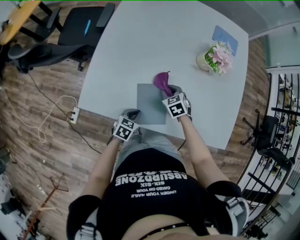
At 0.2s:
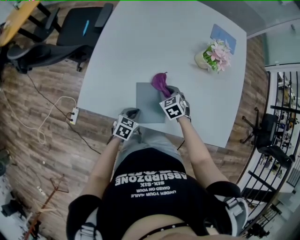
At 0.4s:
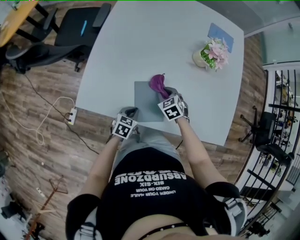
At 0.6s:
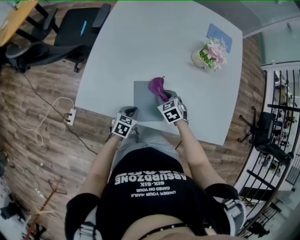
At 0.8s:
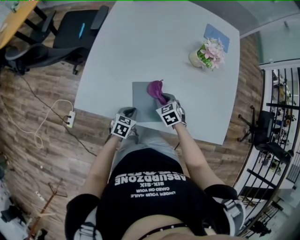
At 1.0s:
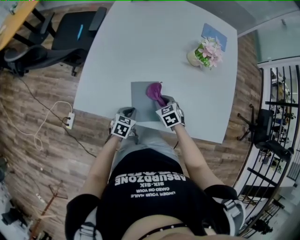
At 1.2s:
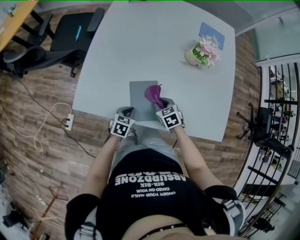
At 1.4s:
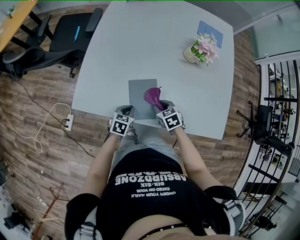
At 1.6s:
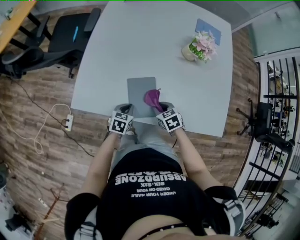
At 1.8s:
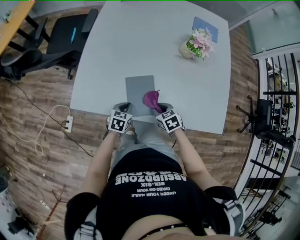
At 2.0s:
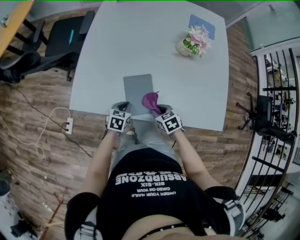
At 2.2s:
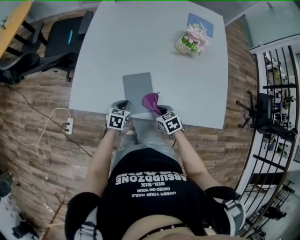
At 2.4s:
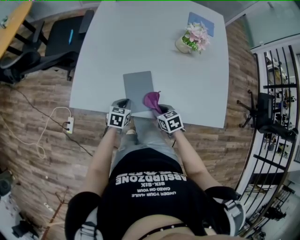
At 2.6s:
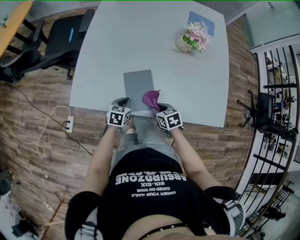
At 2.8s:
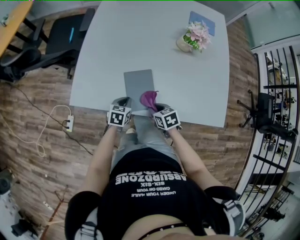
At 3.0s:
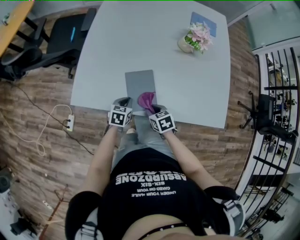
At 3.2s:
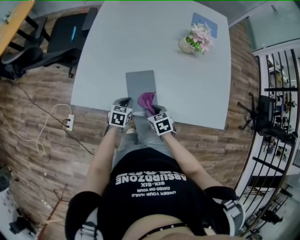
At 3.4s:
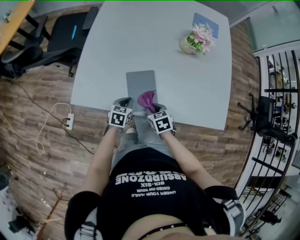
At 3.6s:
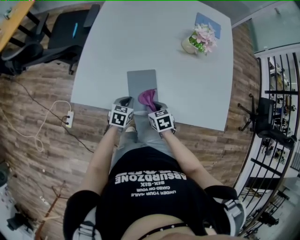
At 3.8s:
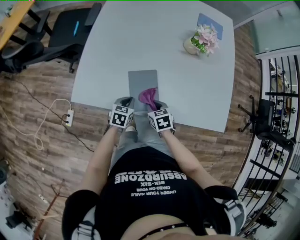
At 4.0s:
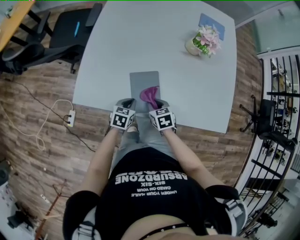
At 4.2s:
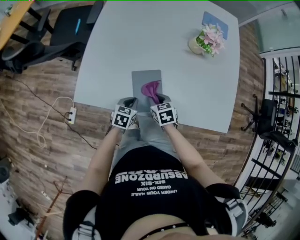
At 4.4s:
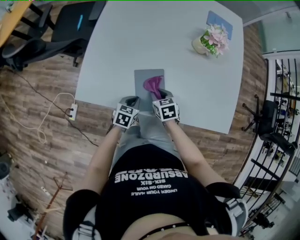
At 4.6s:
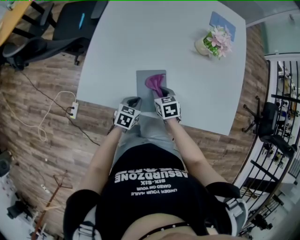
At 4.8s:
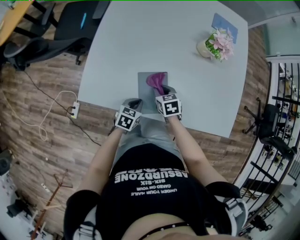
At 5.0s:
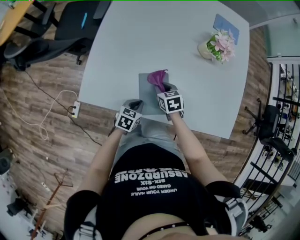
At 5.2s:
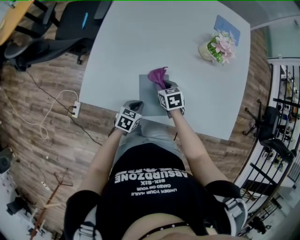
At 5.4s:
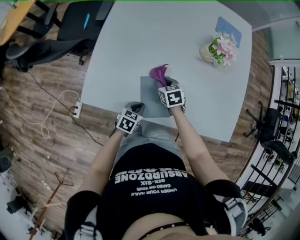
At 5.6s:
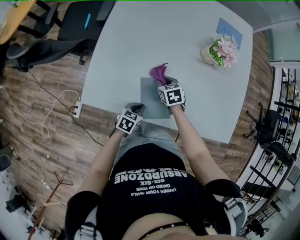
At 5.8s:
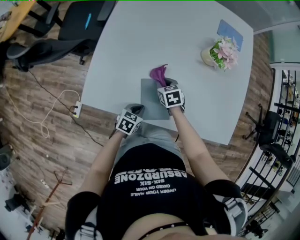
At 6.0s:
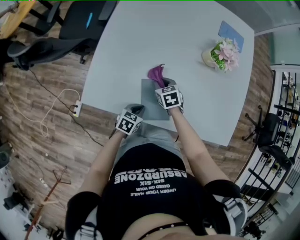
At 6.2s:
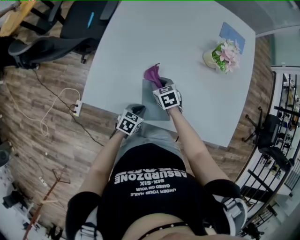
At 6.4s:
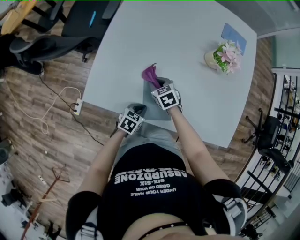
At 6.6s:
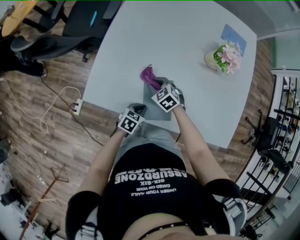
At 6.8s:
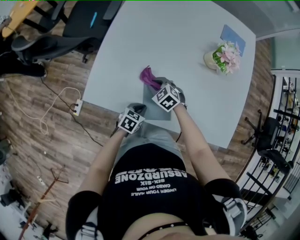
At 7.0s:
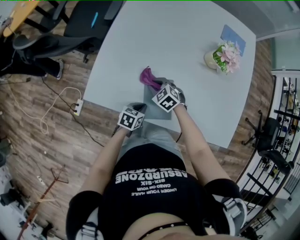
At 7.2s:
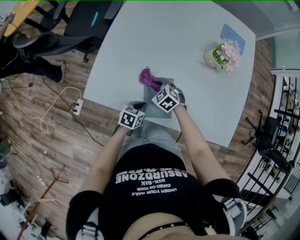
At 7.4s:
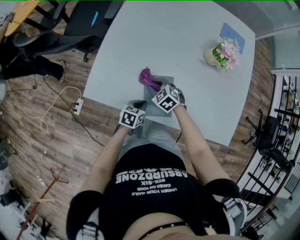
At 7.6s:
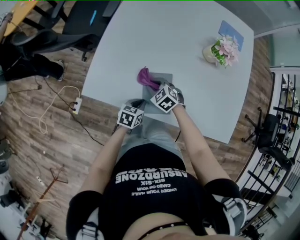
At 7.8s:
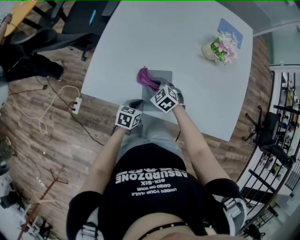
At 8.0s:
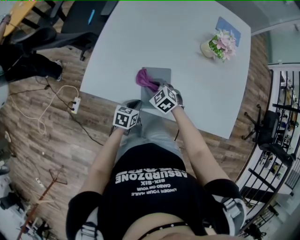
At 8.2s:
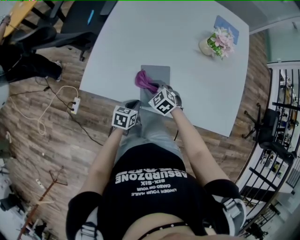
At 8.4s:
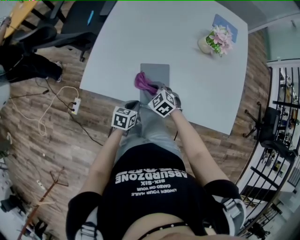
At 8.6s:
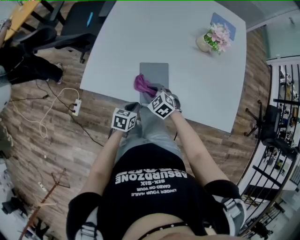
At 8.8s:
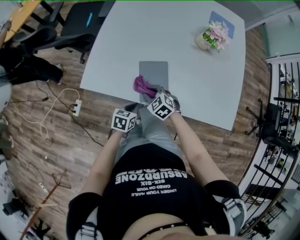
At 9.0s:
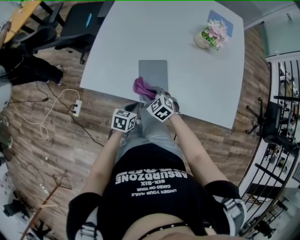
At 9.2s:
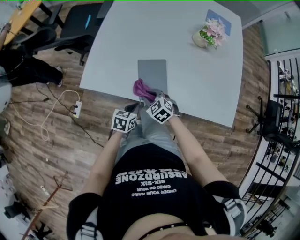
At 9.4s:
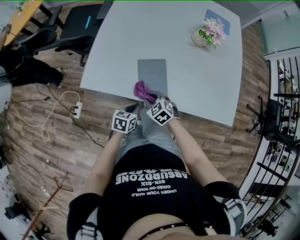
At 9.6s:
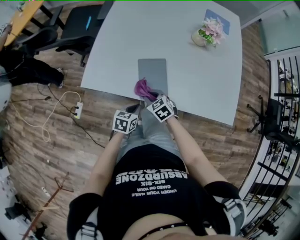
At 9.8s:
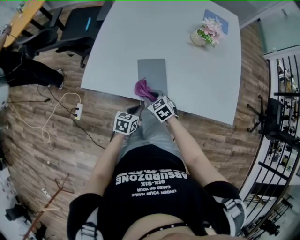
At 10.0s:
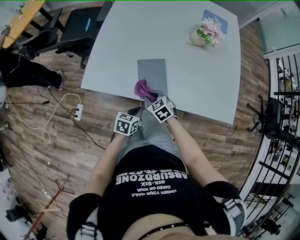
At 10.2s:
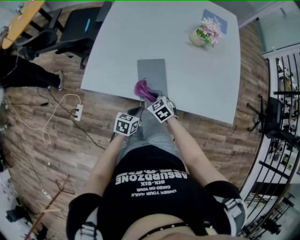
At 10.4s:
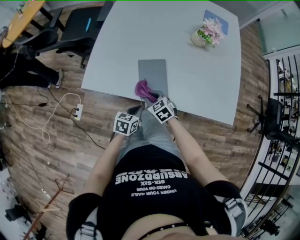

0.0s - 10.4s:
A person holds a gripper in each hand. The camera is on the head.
0.0s - 1.4s: The right gripper shifts some 10 cm backward.
1.4s - 3.0s: The right gripper is displaced backward by some 5 cm.
3.0s - 4.4s: The right gripper moves forward, roughly 10 cm.
4.4s - 6.0s: The right gripper is displaced forward by approximately 10 cm.
6.0s - 7.4s: The right gripper is displaced backward by some 5 cm, and changes its angle by approximately 30 degrees.
7.4s - 9.0s: The grippers both shift backward by roughly 10 cm.
9.0s - 10.4s: The grippers make only small movements.

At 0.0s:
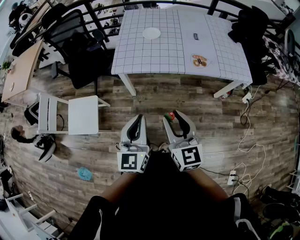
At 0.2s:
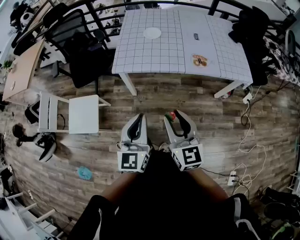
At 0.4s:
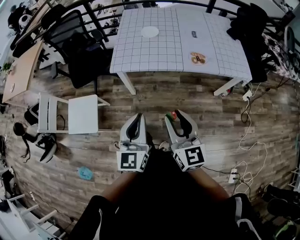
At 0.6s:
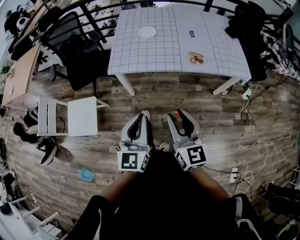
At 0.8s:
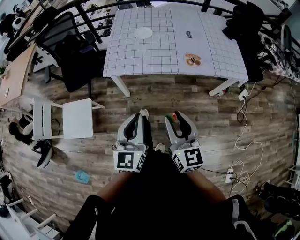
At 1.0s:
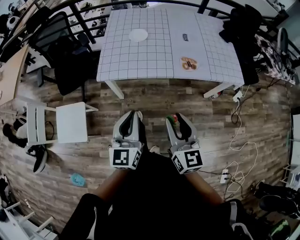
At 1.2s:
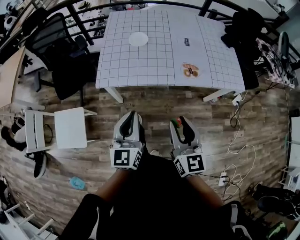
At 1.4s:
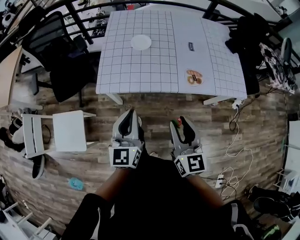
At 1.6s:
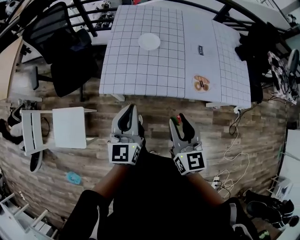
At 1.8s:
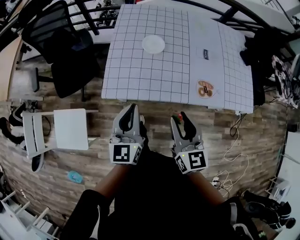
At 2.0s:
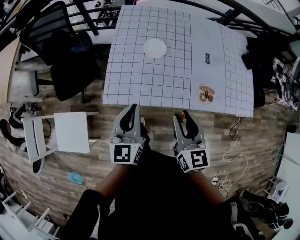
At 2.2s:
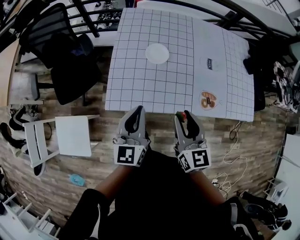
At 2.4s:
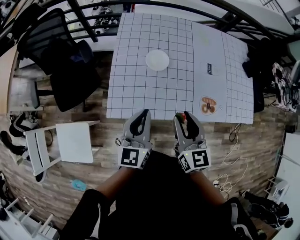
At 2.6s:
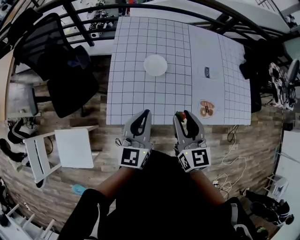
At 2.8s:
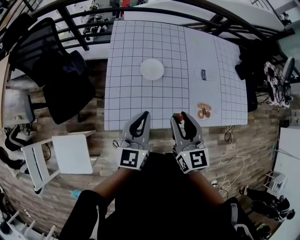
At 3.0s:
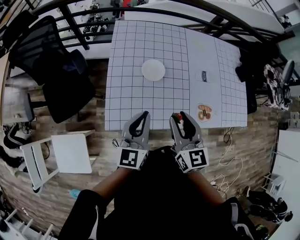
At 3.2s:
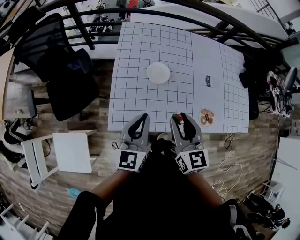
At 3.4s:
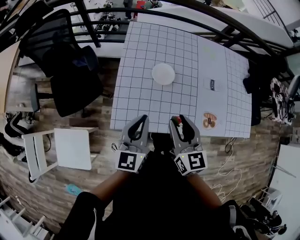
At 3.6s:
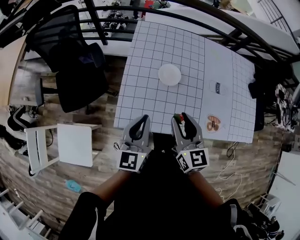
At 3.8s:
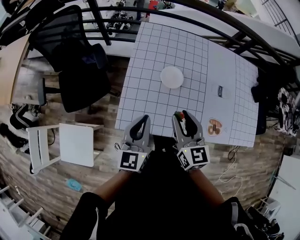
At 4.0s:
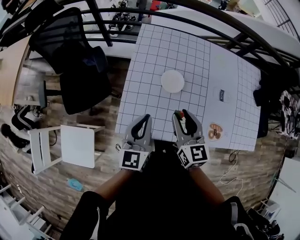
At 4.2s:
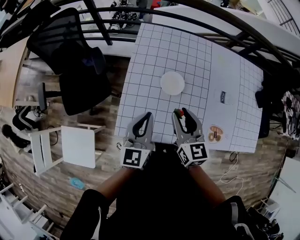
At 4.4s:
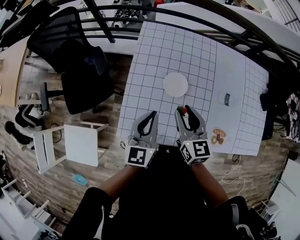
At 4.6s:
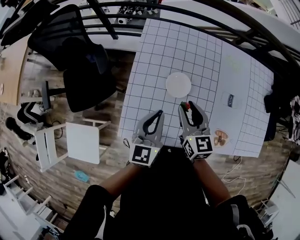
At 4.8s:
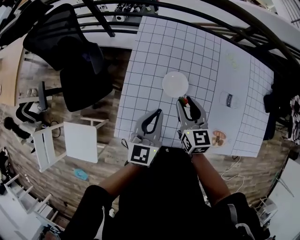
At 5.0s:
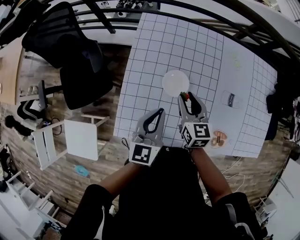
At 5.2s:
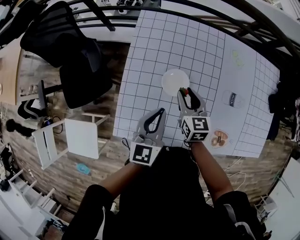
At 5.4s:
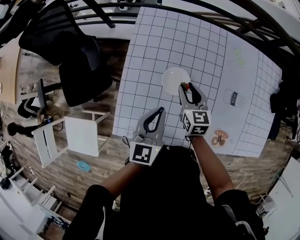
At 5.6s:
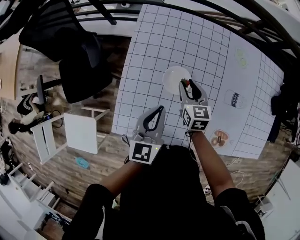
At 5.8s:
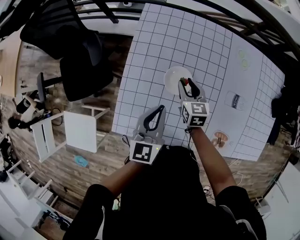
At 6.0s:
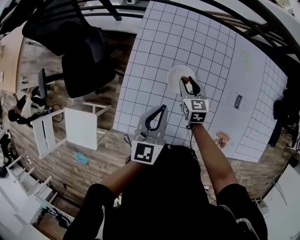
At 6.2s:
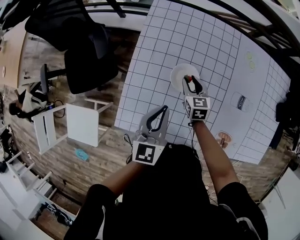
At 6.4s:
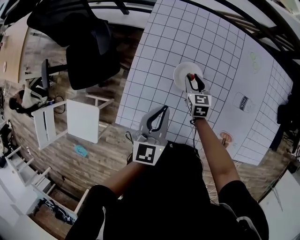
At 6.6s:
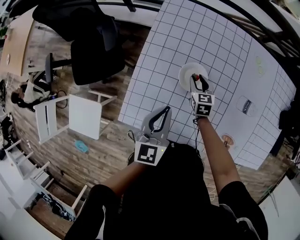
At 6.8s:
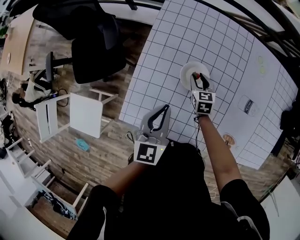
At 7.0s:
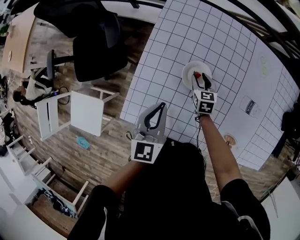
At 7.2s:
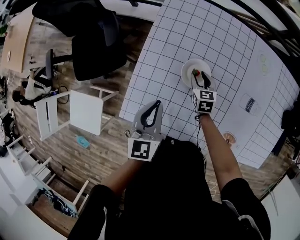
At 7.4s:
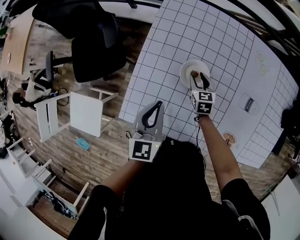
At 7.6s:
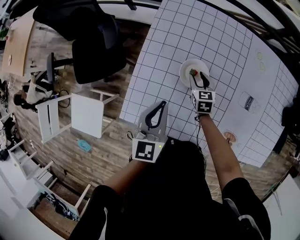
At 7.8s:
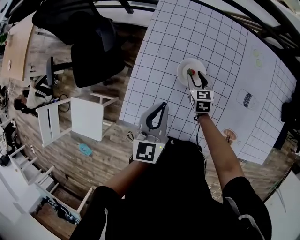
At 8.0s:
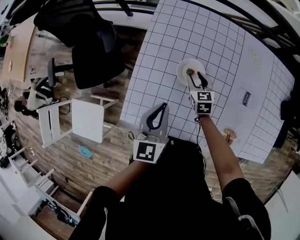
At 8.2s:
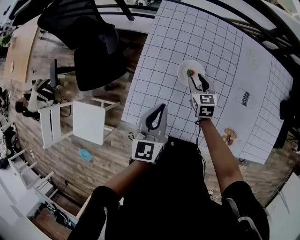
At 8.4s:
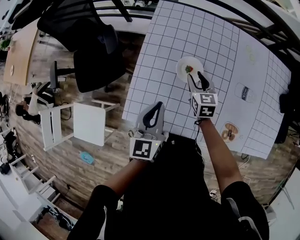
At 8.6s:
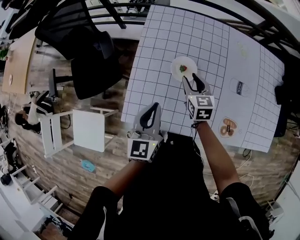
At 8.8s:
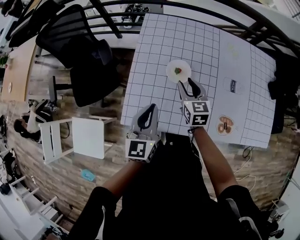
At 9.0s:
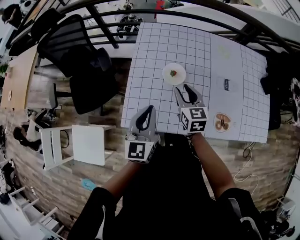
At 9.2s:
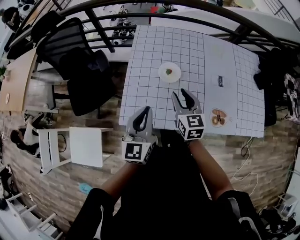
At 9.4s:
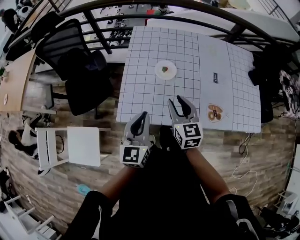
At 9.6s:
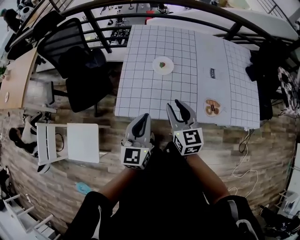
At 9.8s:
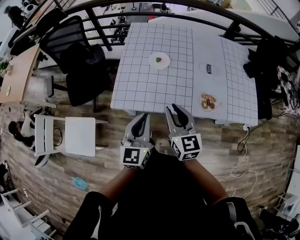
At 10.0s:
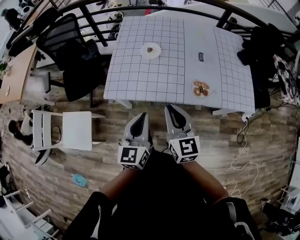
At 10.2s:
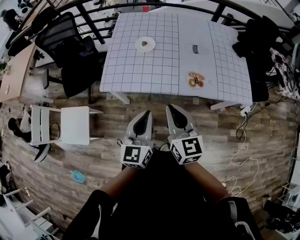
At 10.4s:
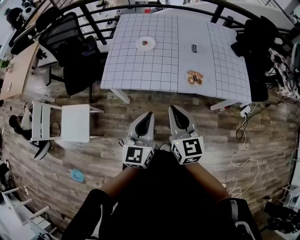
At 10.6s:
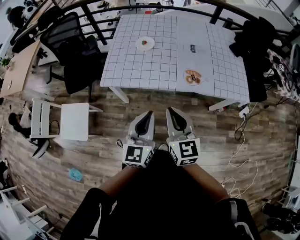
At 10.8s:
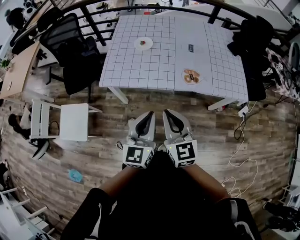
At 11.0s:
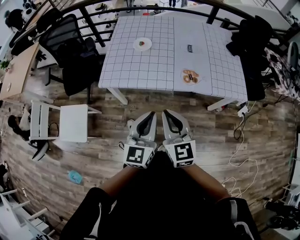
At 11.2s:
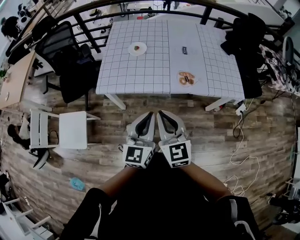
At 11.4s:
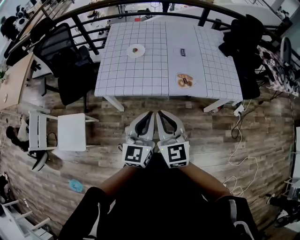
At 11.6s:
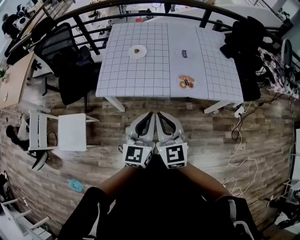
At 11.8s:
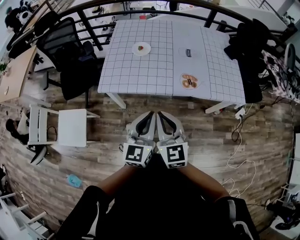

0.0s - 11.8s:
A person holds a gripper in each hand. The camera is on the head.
0.0s - 1.4s: The grippers both shift forward by approximately 20 cm.
1.4s - 3.0s: Both grippers travel together forward, roughly 30 cm.
3.0s - 4.4s: The two grippers go some 15 cm forward.
4.4s - 6.0s: The right gripper is displaced downward and forward by some 25 cm, while the left gripper heads downward and forward, covering about 10 cm.
6.0s - 7.4s: The right gripper goes roughly 5 cm downward; the left gripper is displaced to the left by some 5 cm.
7.4s - 8.8s: The right gripper shifts some 20 cm upward and backward, while the left gripper goes approximately 10 cm backward and upward.
8.8s - 10.4s: The two grippers travel together, backward, roughly 50 cm. The right gripper closes its fingers.
10.4s - 11.8s: The grippers make only small movements.

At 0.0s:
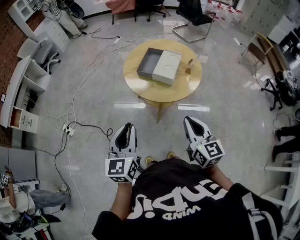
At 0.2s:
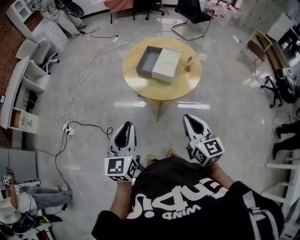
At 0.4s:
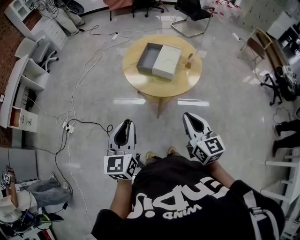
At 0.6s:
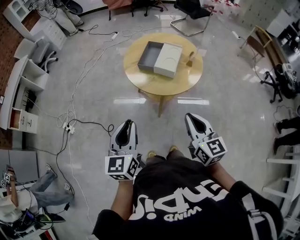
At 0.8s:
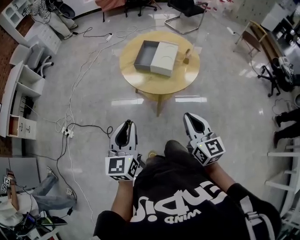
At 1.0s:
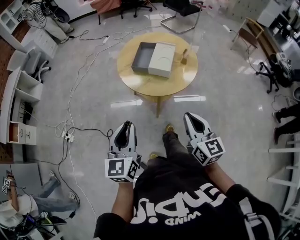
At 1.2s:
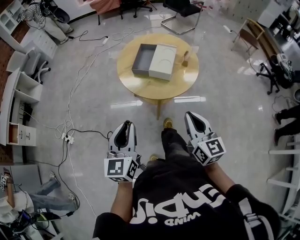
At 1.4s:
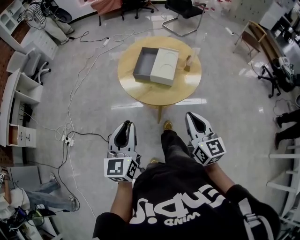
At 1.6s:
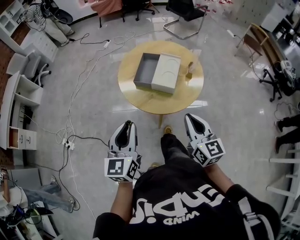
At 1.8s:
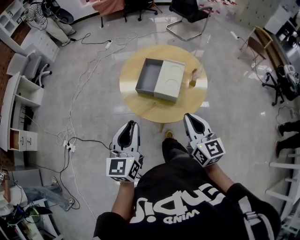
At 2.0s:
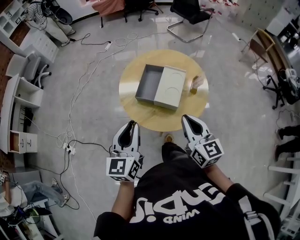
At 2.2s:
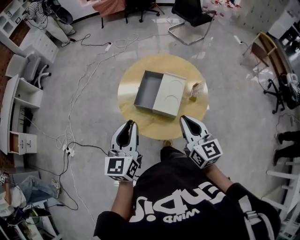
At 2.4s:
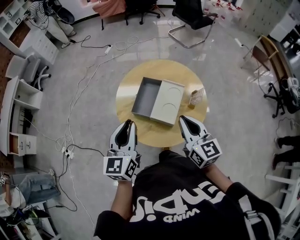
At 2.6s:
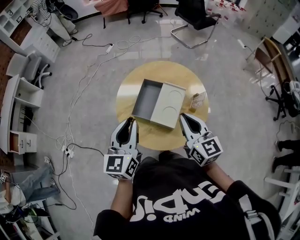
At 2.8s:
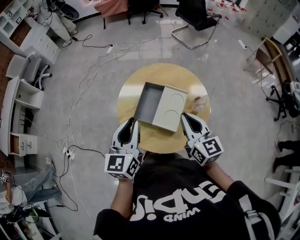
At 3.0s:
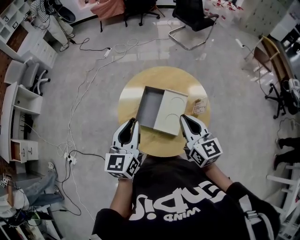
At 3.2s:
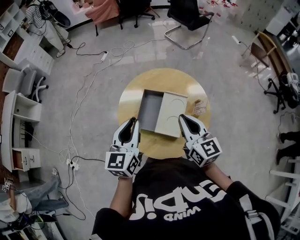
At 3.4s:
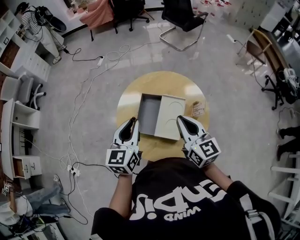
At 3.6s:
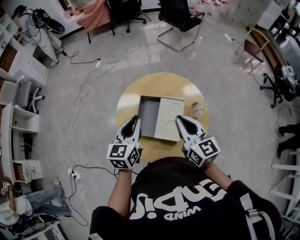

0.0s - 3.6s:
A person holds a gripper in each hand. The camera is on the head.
0.0s - 1.8s: The two grippers go roughly 20 cm forward.
1.8s - 3.6s: Both grippers travel together forward, some 25 cm.
